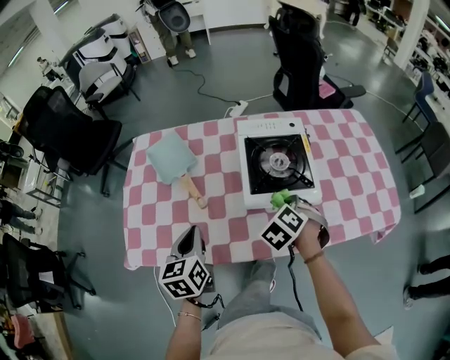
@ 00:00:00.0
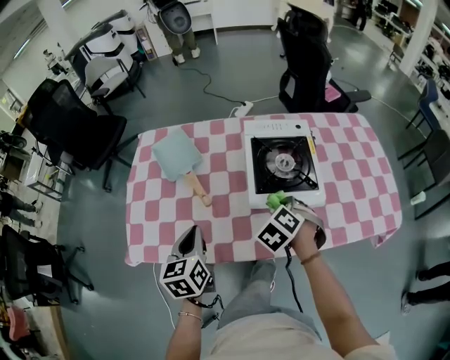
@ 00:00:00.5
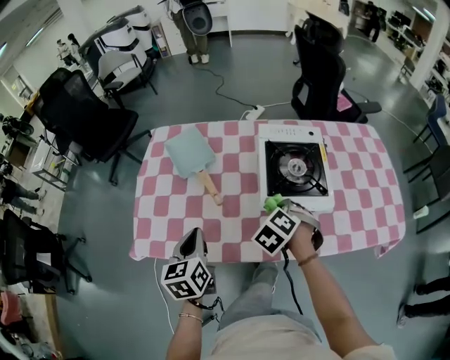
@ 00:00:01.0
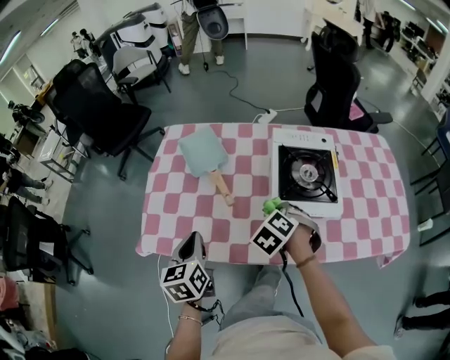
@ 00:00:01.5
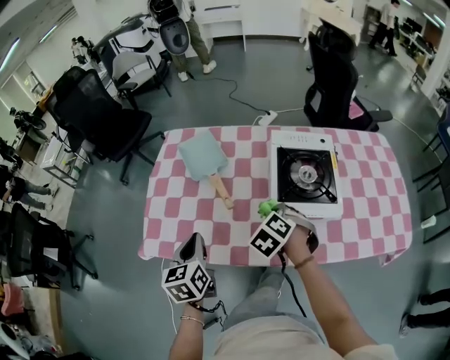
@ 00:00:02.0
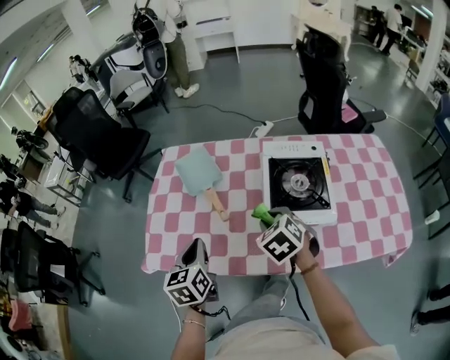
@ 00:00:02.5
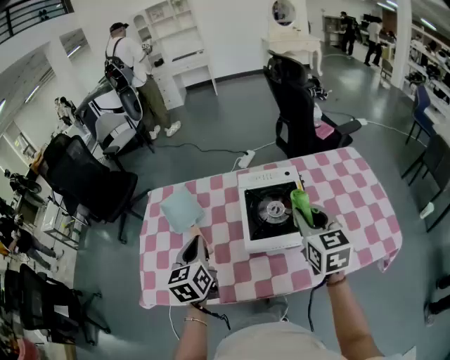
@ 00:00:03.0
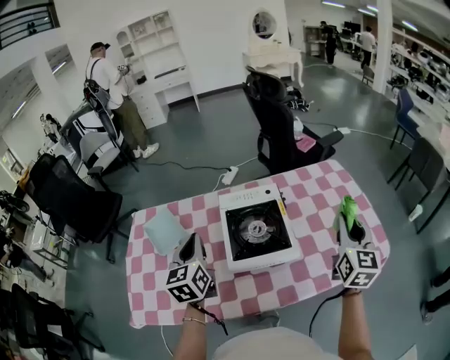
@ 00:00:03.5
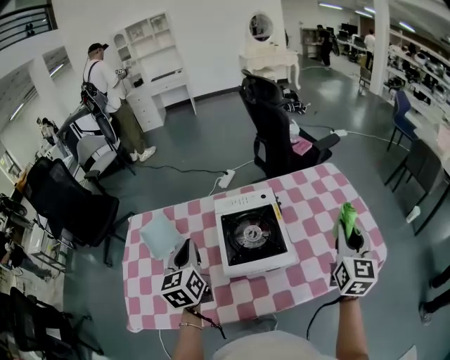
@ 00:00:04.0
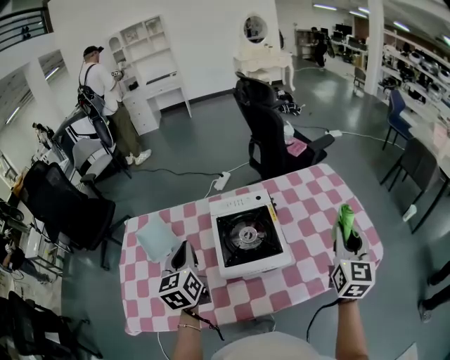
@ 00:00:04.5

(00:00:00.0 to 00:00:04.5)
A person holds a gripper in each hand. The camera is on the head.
00:00:00.0 - 00:00:02.0: The left gripper goes about 5 cm to the left, while the right gripper is displaced to the left by approximately 10 cm.
00:00:02.0 - 00:00:04.5: The left gripper changes place by about 25 cm; the right gripper ends up about 40 cm from where it was, and tips its fingers upward by approximately 60 degrees.

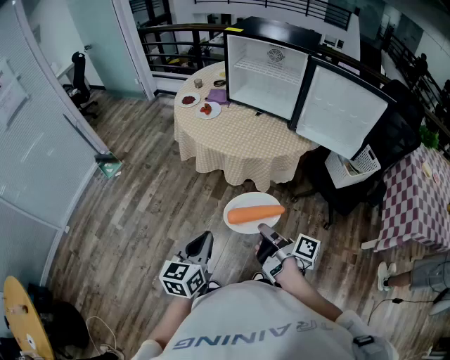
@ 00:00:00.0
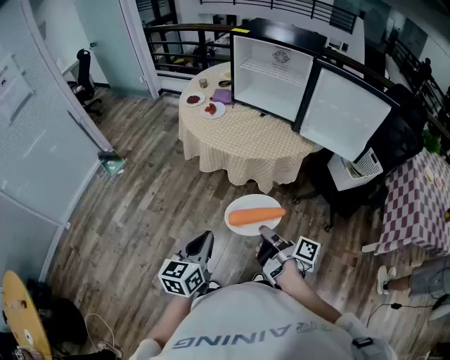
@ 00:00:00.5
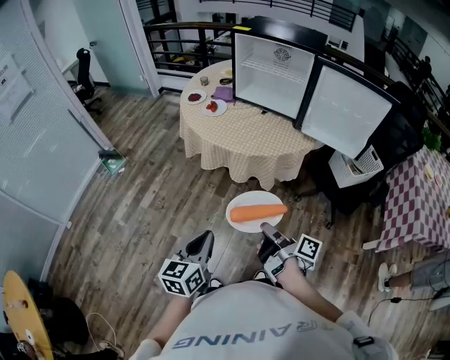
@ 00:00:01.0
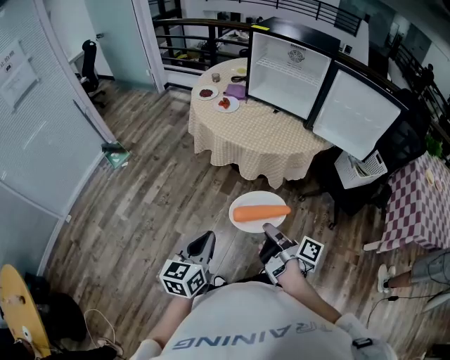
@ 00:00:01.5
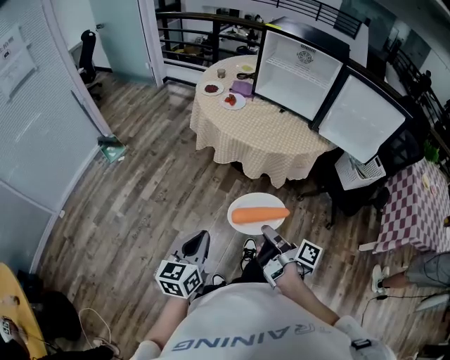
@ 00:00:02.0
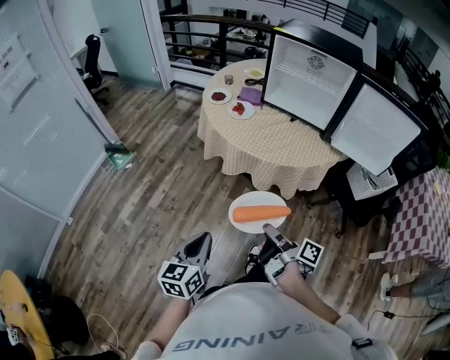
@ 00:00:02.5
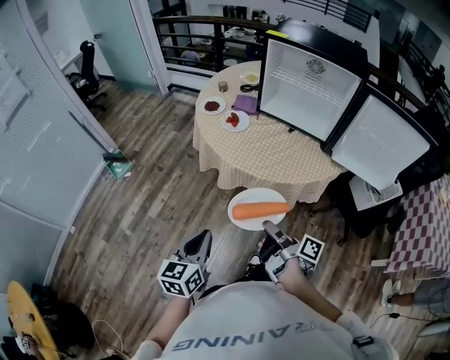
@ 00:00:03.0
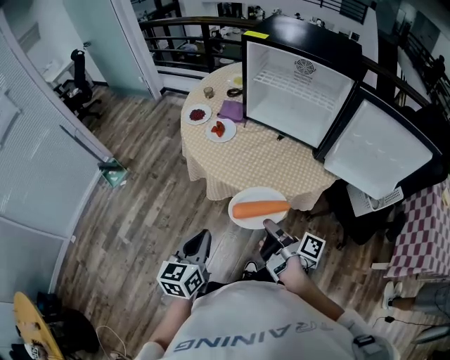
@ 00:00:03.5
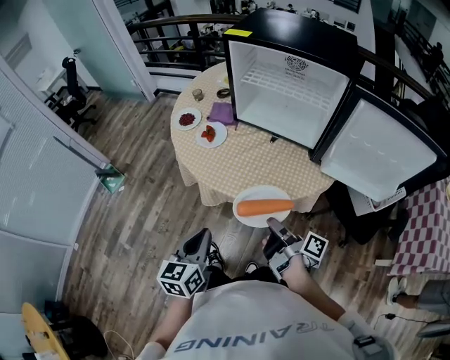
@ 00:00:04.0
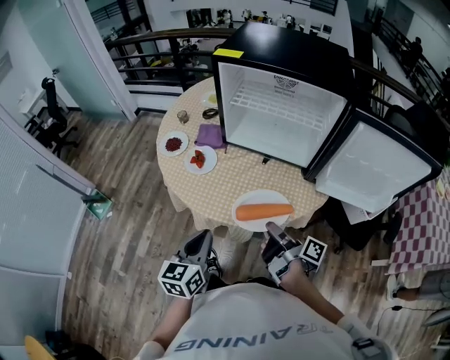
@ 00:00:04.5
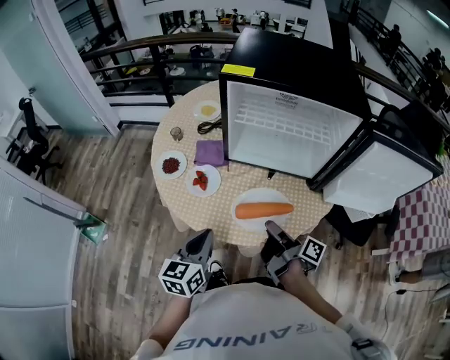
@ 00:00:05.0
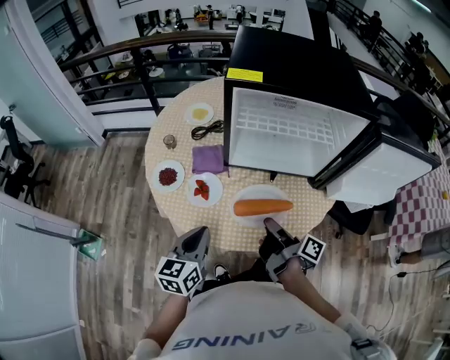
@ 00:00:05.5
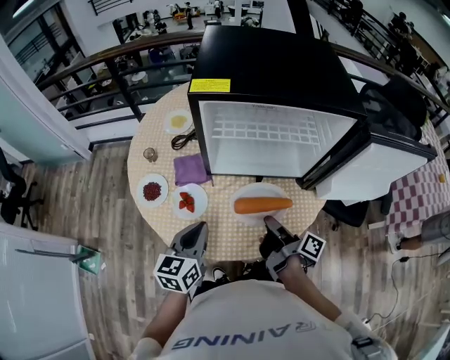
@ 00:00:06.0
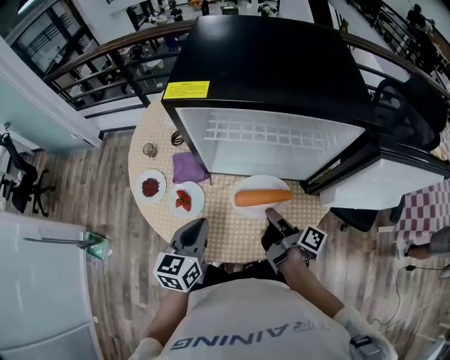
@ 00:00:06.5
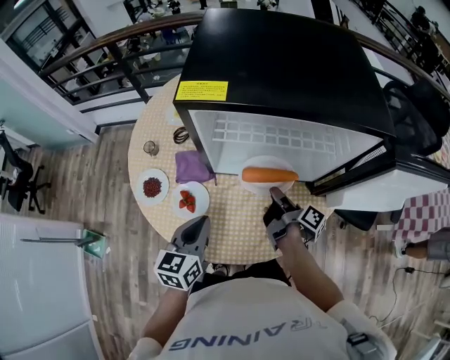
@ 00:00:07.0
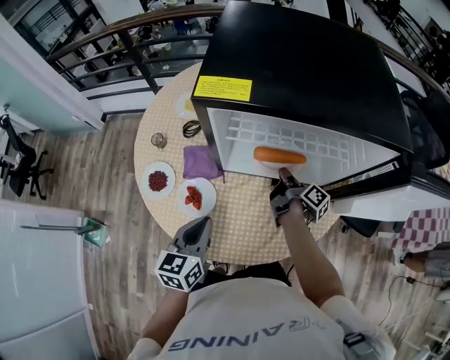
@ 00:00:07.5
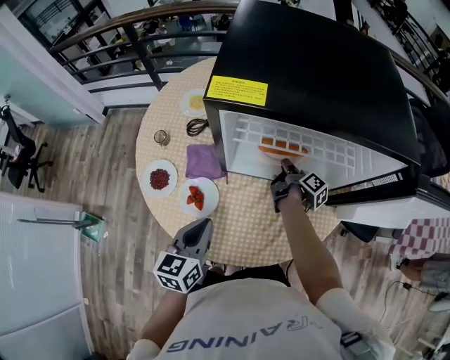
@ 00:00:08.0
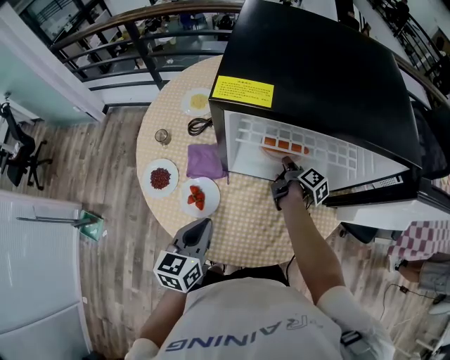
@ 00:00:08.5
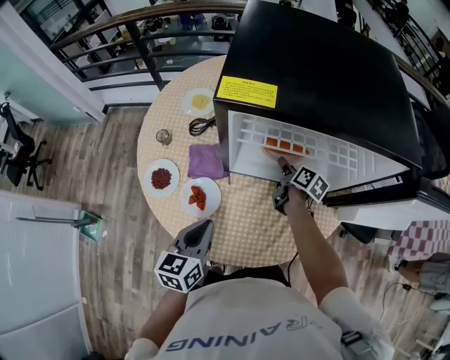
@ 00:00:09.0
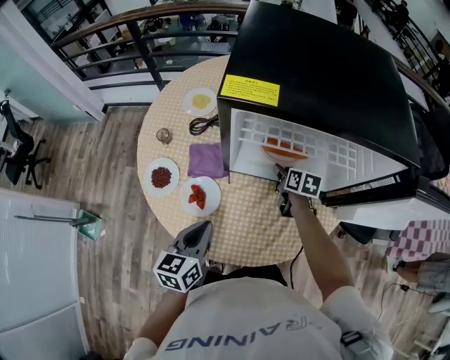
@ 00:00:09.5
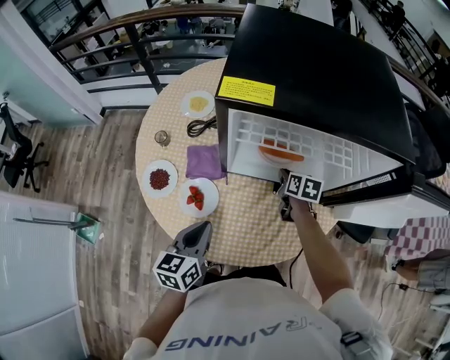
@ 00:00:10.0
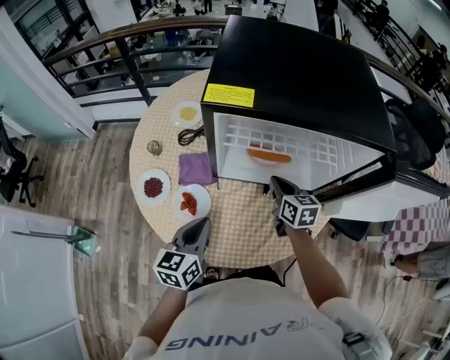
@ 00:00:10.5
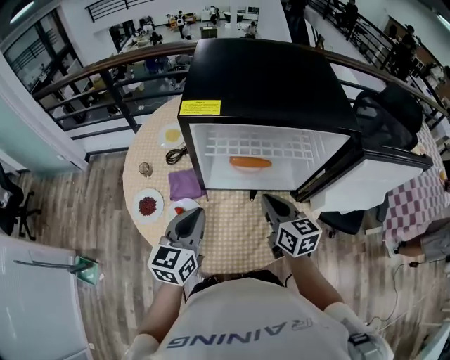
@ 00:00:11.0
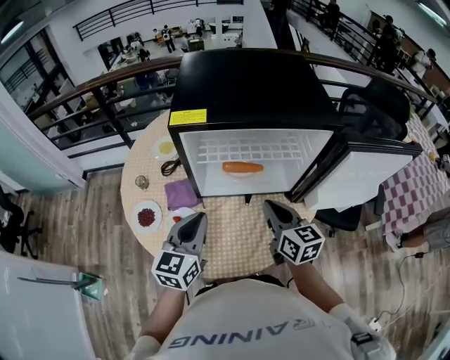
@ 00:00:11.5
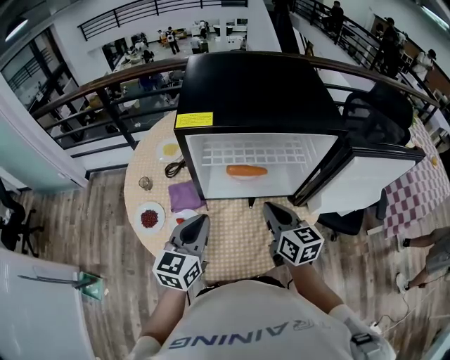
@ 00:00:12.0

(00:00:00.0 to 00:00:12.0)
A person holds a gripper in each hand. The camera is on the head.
00:00:00.0 - 00:00:02.0: The left gripper shifts by about 15 cm.
00:00:02.0 - 00:00:04.0: The left gripper moves approximately 30 cm.
00:00:04.0 - 00:00:06.0: The left gripper shifts by approximately 30 cm, and changes its angle by roughly 30 degrees.
00:00:06.0 - 00:00:08.0: The left gripper shifts by approximately 5 cm.
00:00:10.0 - 00:00:12.0: The left gripper goes roughly 10 cm upward, and rotates roughly 20 degrees.

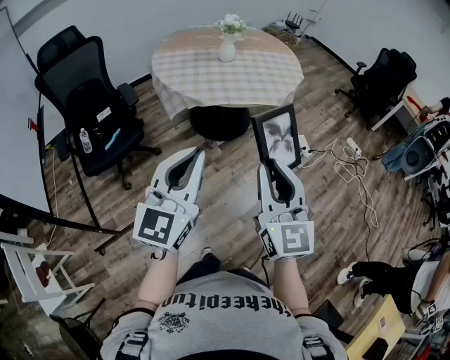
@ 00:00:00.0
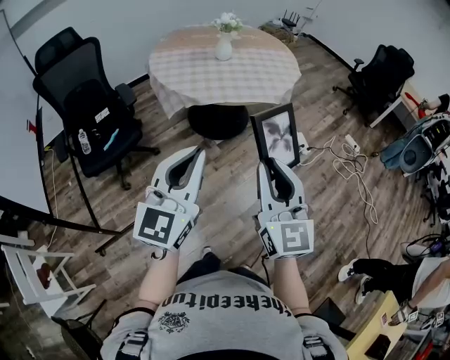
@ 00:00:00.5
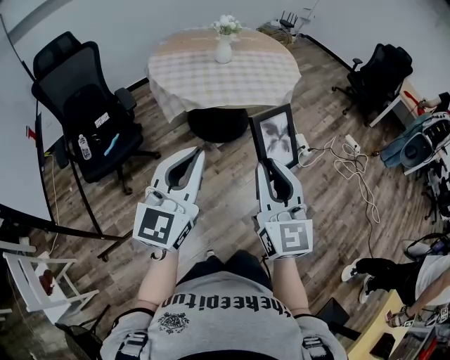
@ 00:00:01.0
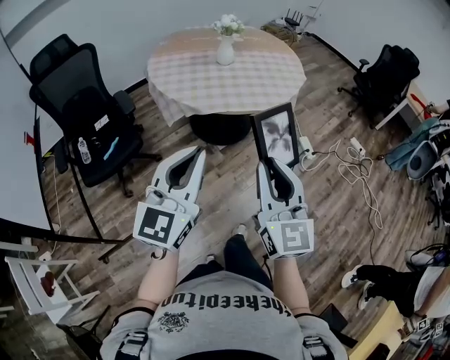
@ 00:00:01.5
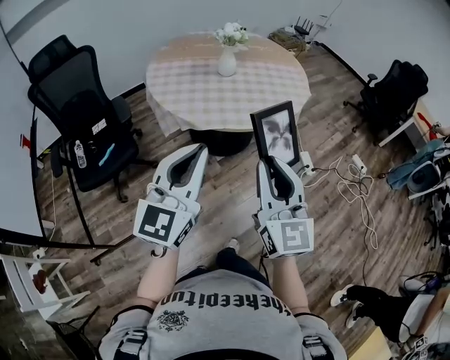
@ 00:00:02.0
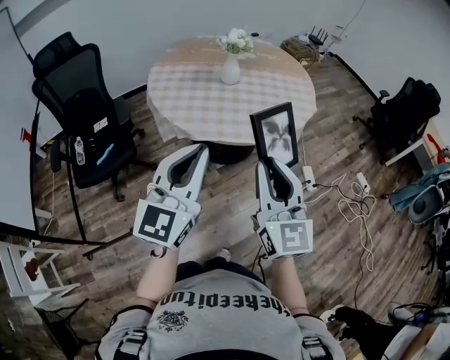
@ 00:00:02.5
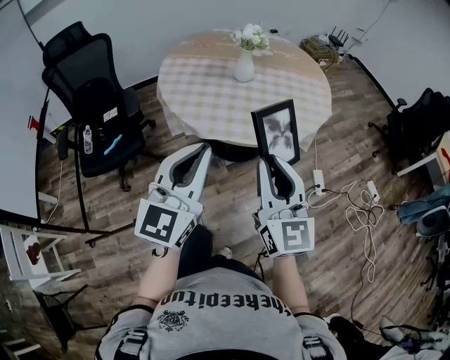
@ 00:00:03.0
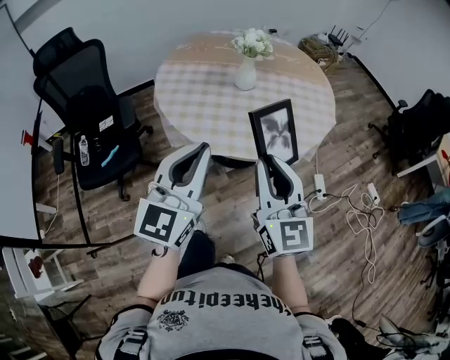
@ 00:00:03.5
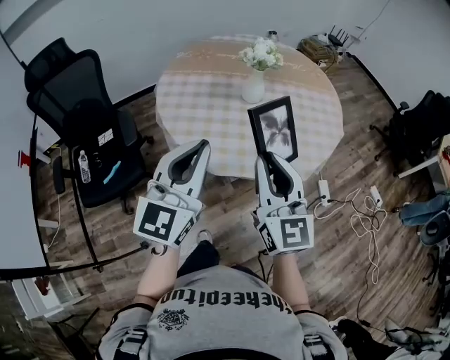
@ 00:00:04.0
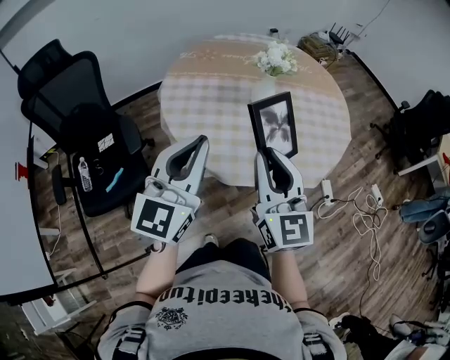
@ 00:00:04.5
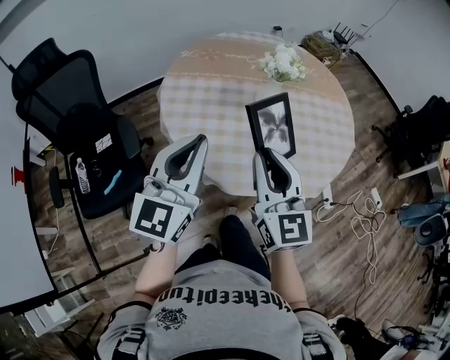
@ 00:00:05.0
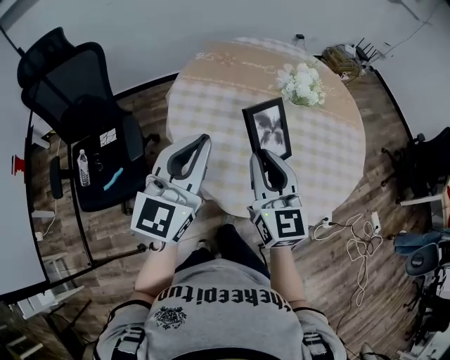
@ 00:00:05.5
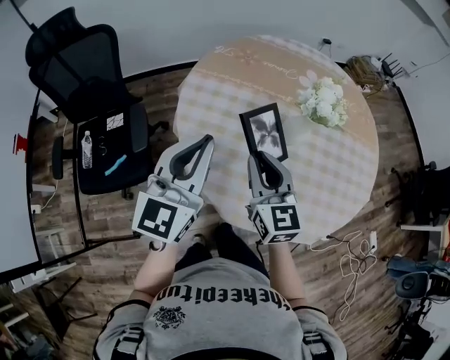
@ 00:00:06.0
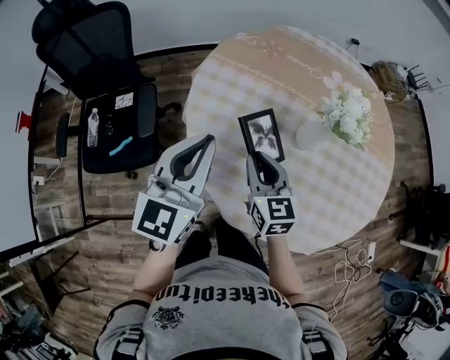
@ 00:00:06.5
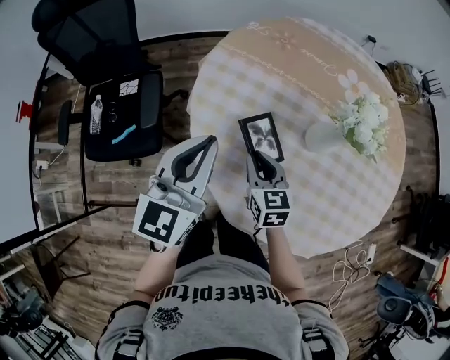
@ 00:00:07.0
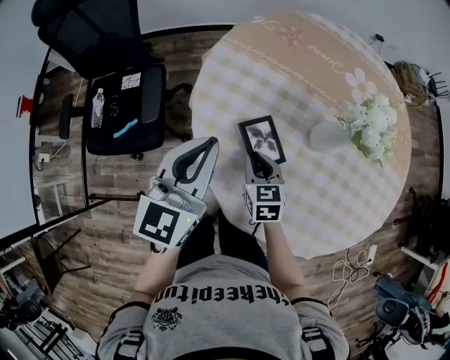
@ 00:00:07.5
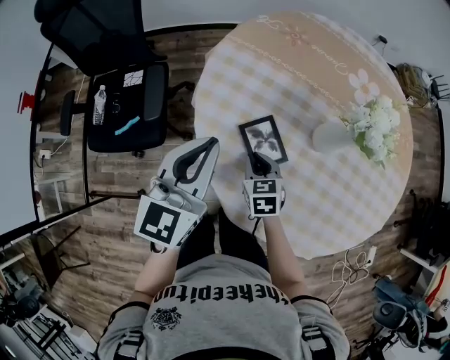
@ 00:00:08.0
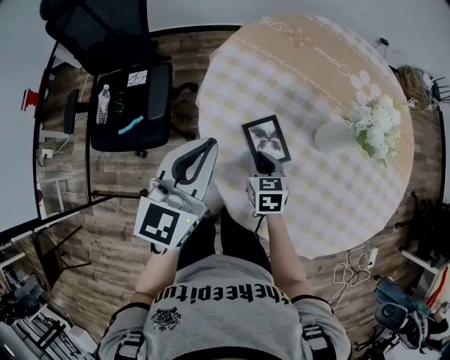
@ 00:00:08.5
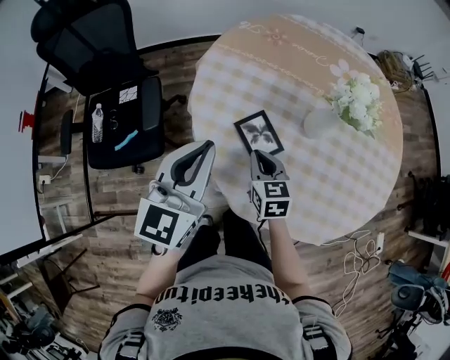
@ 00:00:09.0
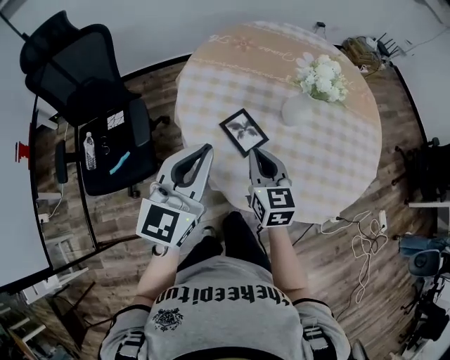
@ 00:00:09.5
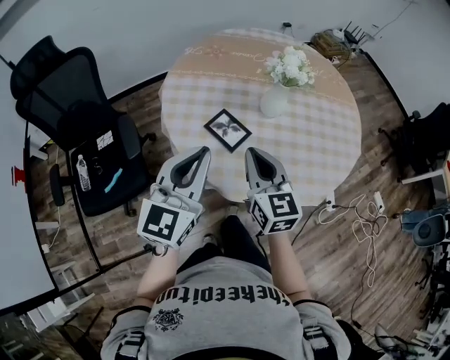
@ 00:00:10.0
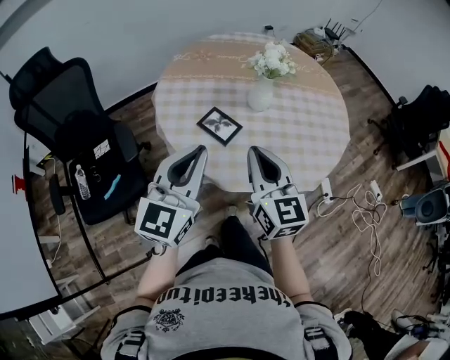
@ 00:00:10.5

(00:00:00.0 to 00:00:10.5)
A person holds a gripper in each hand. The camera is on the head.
00:00:00.0 - 00:00:02.0: The grippers both shift forward by approximately 15 cm.
00:00:02.0 - 00:00:04.0: Both grippers travel together forward, about 25 cm.
00:00:04.0 - 00:00:06.5: The right gripper shifts some 35 cm forward, downward and to the left, and turns by about 30 degrees. Meanwhile the left gripper shifts some 25 cm forward and to the left, and swivels approximately 20 degrees.
00:00:06.5 - 00:00:08.5: The right gripper is displaced downward by about 15 cm, and changes its angle by about 20 degrees.
00:00:08.5 - 00:00:10.5: The right gripper travels upward by roughly 30 cm, and tilts its fingers some 40 degrees upward, while the left gripper changes place by some 20 cm, and turns by about 30 degrees.
